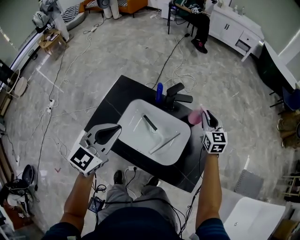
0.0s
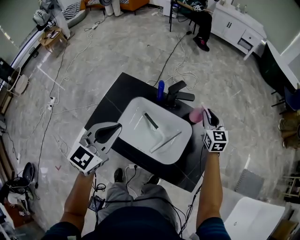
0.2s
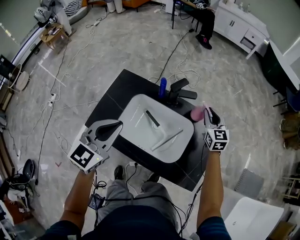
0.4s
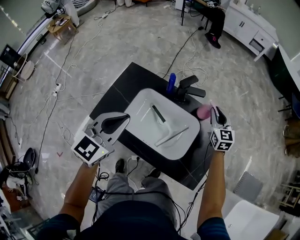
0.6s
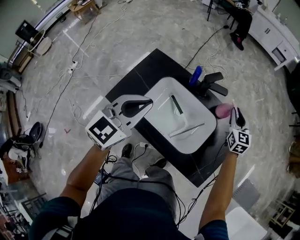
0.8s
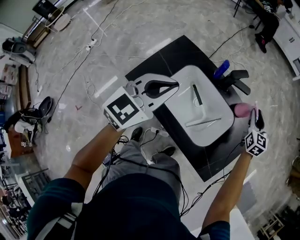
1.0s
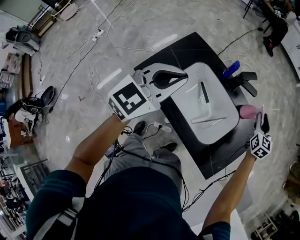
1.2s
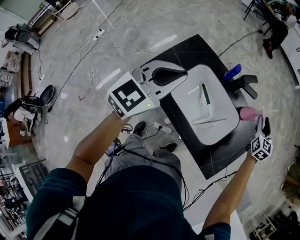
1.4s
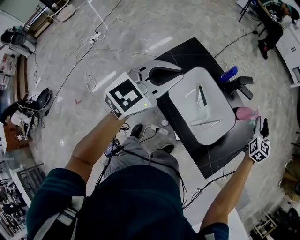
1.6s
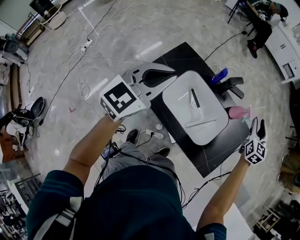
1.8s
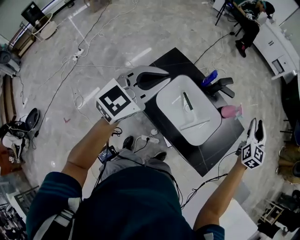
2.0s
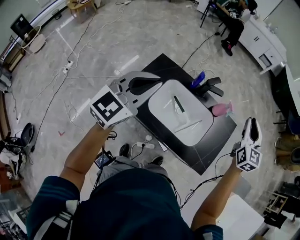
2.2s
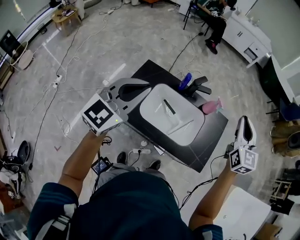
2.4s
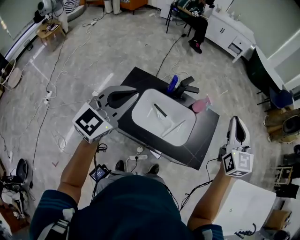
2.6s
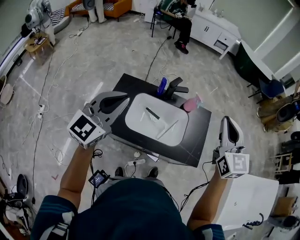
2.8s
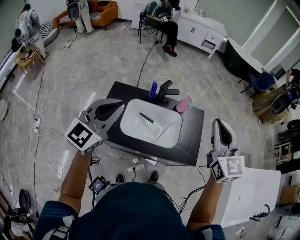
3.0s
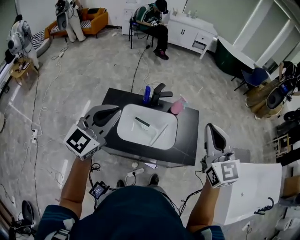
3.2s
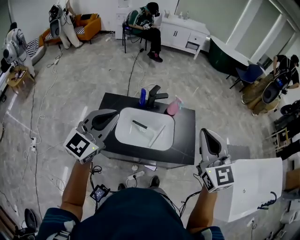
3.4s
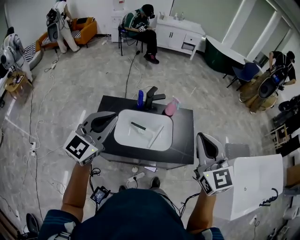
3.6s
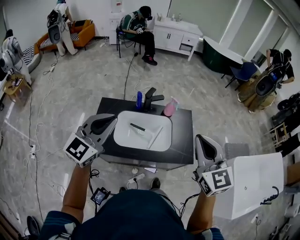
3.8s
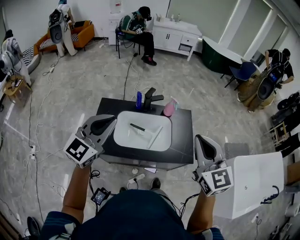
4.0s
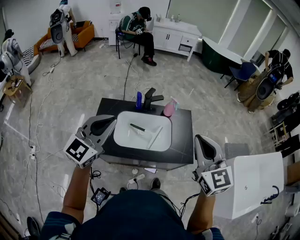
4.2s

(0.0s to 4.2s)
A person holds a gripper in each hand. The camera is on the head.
0.0s - 1.4s: The left gripper shifts roughly 10 cm to the left, while the right gripper opens its fingers.
1.4s - 2.8s: The right gripper heads upward and backward, covering roughly 40 cm, swivels some 20 degrees, and closes up. Meanwhile the left gripper moves upward, approximately 15 cm, and turns by approximately 20 degrees.
2.8s - 4.2s: The left gripper ends up roughly 5 cm from where it was; the right gripper moves backward, some 15 cm.

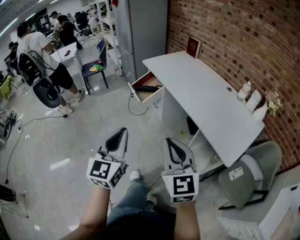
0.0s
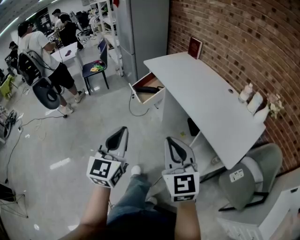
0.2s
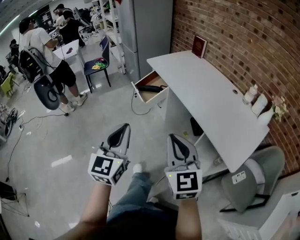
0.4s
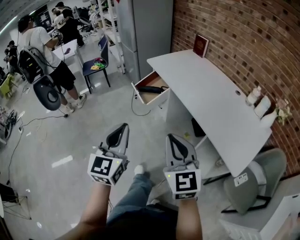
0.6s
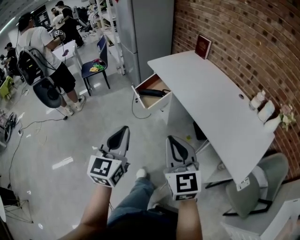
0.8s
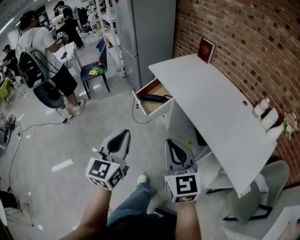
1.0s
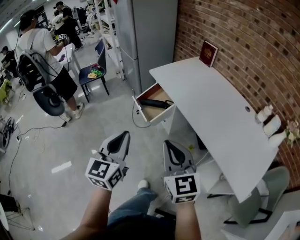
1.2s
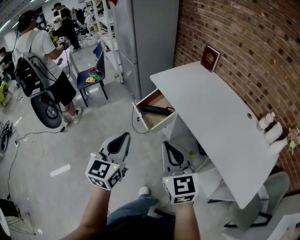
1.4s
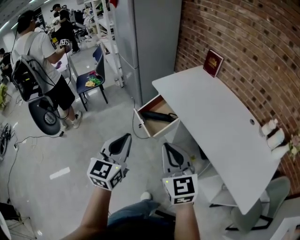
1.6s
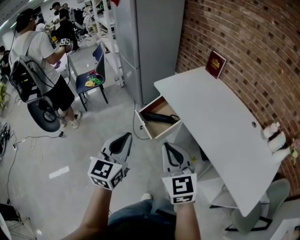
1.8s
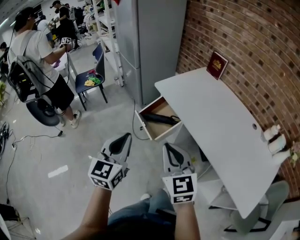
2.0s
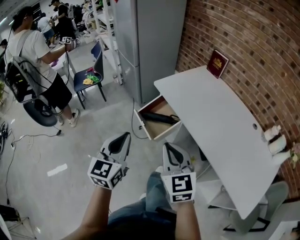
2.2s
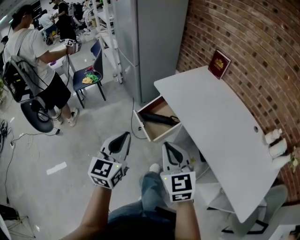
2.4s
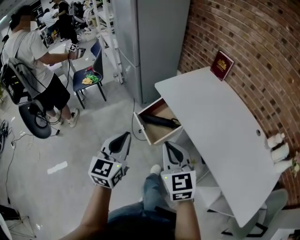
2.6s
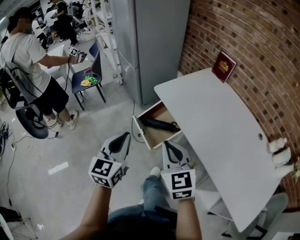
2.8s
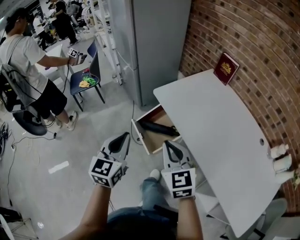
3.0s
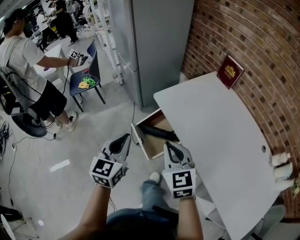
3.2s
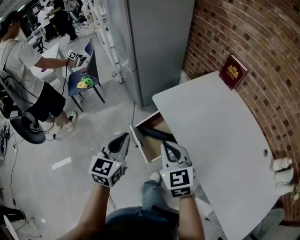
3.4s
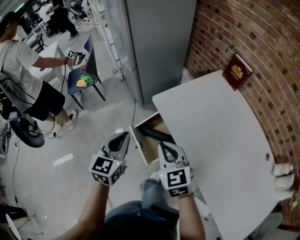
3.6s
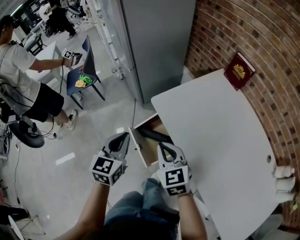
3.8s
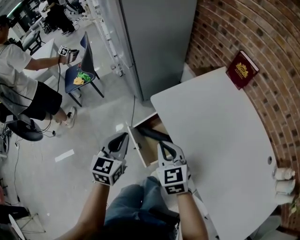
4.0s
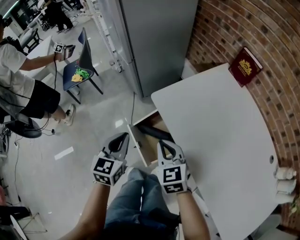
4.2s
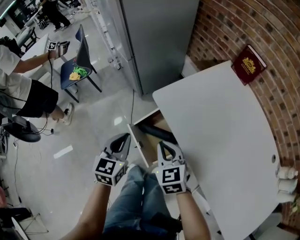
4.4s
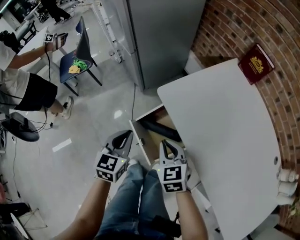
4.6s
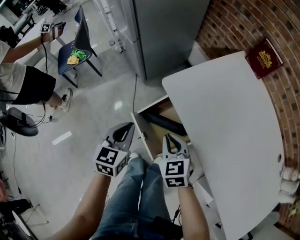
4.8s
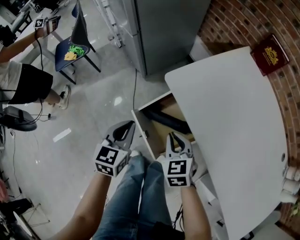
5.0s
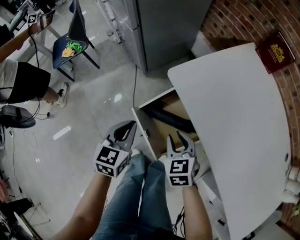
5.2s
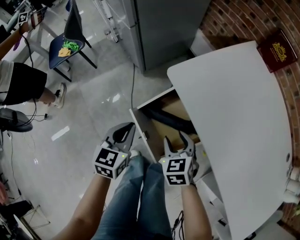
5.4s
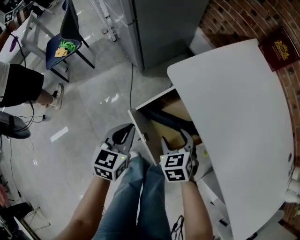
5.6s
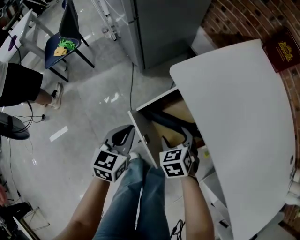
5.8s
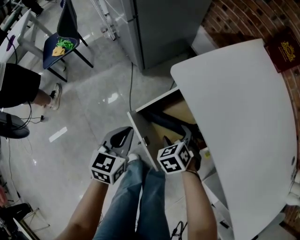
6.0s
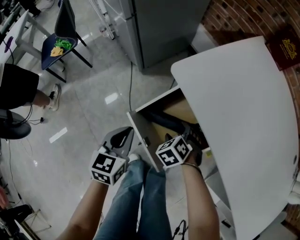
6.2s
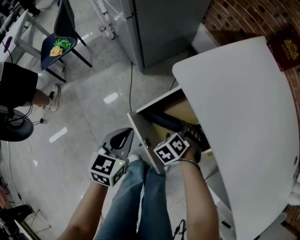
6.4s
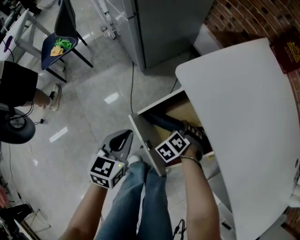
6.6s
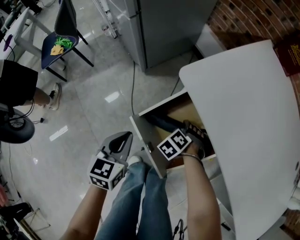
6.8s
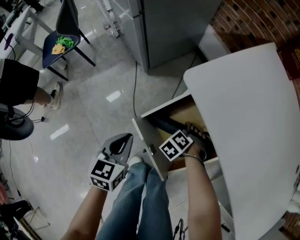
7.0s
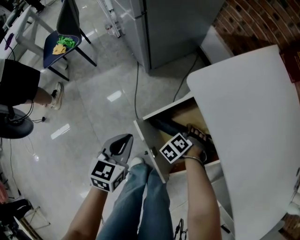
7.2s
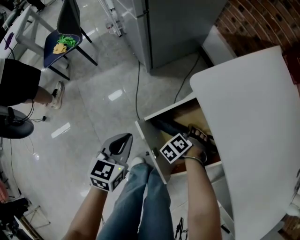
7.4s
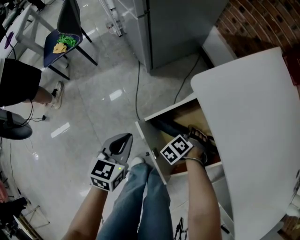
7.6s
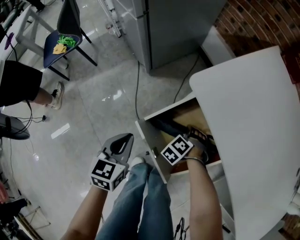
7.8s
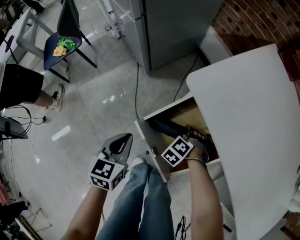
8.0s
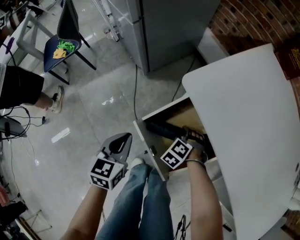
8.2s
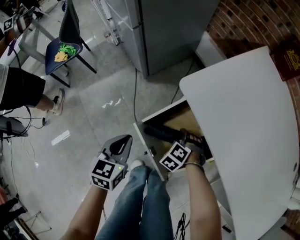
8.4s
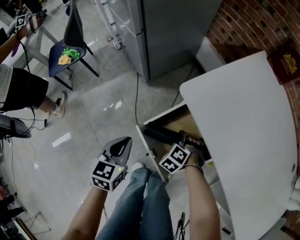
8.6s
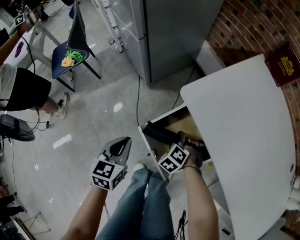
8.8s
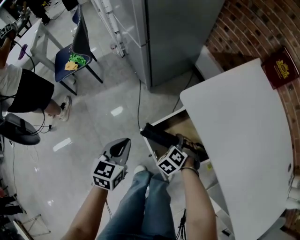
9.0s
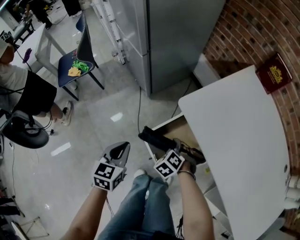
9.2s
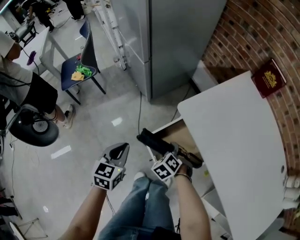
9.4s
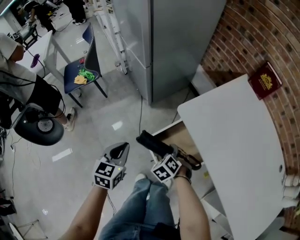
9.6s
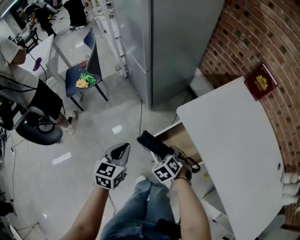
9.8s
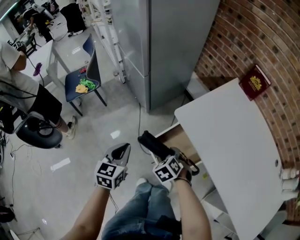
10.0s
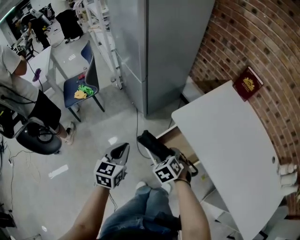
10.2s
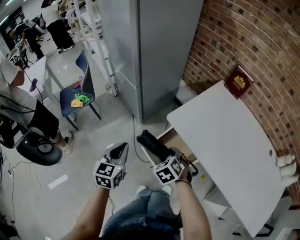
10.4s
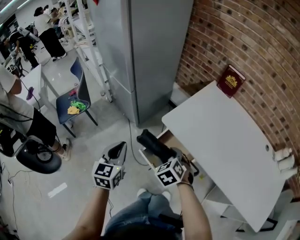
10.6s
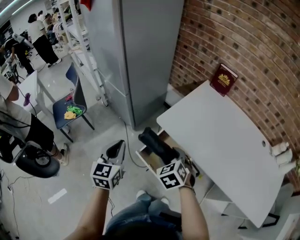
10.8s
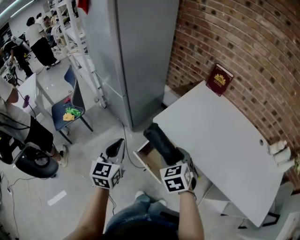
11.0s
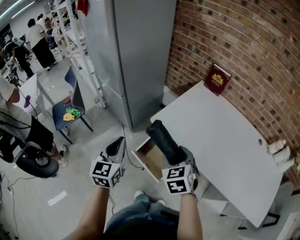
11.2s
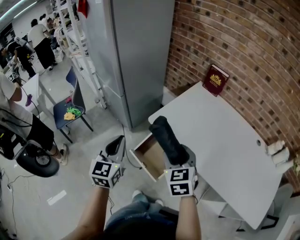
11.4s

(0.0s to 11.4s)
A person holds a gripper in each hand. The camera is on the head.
0.0s - 1.4s: Both grippers travel together forward, roughly 30 cm.
1.4s - 2.8s: Both grippers move forward, about 20 cm.
2.8s - 4.2s: Both grippers move forward and downward, approximately 25 cm.
4.2s - 5.6s: The grippers both shift downward by roughly 20 cm. The right gripper changes its angle by approximately 20 degrees, and opens up.
5.6s - 7.2s: The right gripper moves downward, about 20 cm, and rotates some 50 degrees, while the left gripper heads downward, covering approximately 5 cm.
7.2s - 8.6s: The right gripper is displaced upward by approximately 5 cm.
8.6s - 10.0s: Both grippers move upward, about 20 cm. The right gripper changes its angle by about 20 degrees.
10.0s - 11.4s: The right gripper goes about 25 cm upward, and angles its fingers upward, by some 30 degrees, while the left gripper is displaced upward and to the right by about 20 cm, and changes its angle by some 20 degrees.

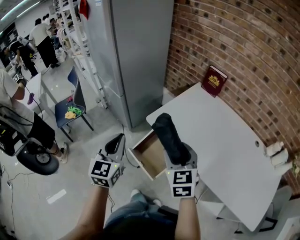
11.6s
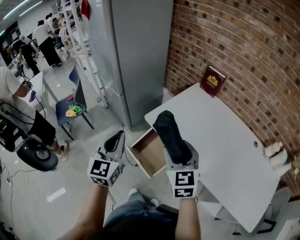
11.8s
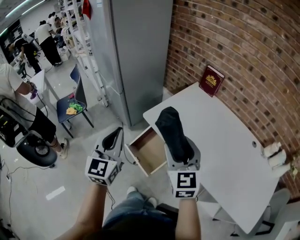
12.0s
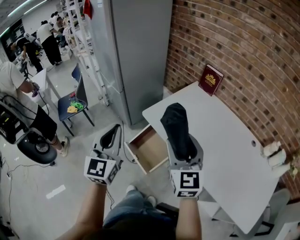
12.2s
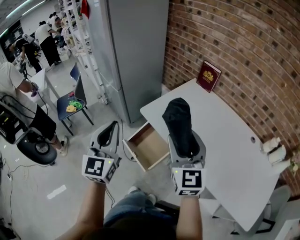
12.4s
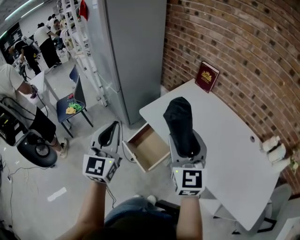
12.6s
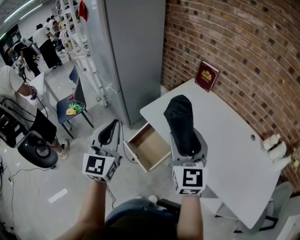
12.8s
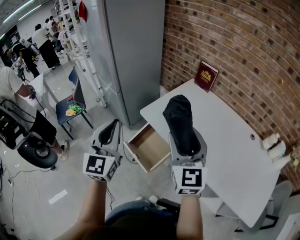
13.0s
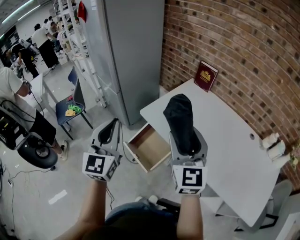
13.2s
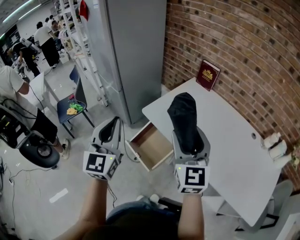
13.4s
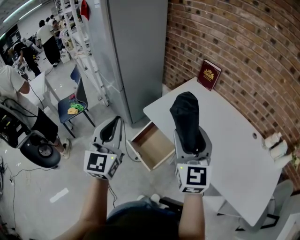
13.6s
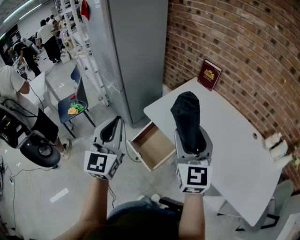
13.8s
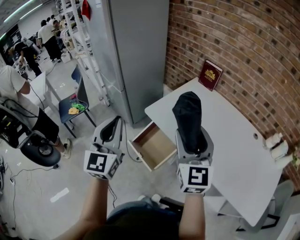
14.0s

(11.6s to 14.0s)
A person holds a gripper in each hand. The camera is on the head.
11.6s - 12.8s: The left gripper goes approximately 10 cm upward, backward and to the right; the right gripper moves upward and to the right, roughly 10 cm, and turns by some 20 degrees.
12.8s - 14.0s: The grippers stay close to where they were, moving slightly.

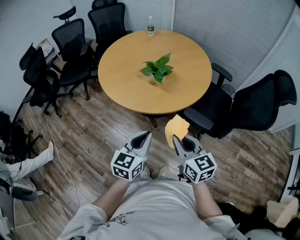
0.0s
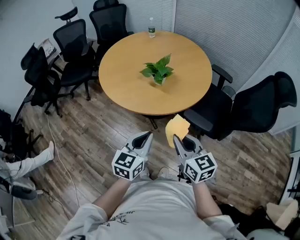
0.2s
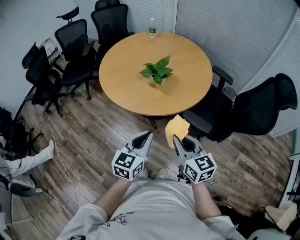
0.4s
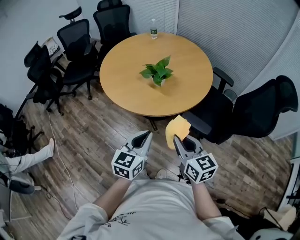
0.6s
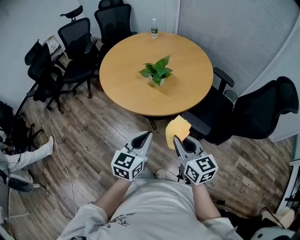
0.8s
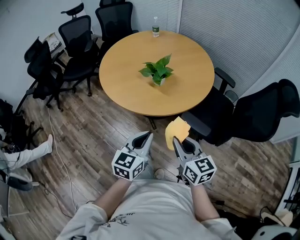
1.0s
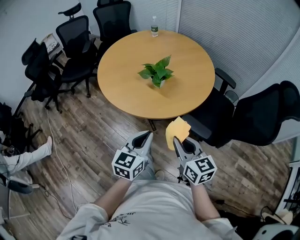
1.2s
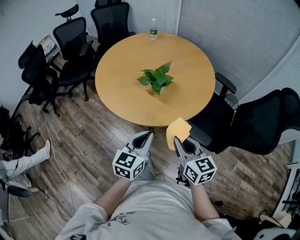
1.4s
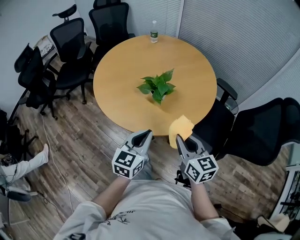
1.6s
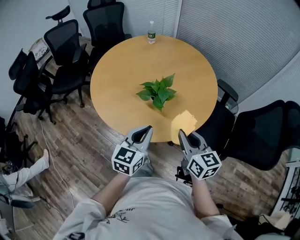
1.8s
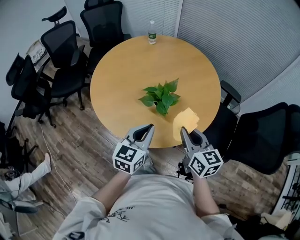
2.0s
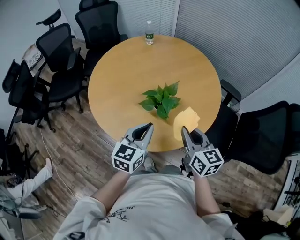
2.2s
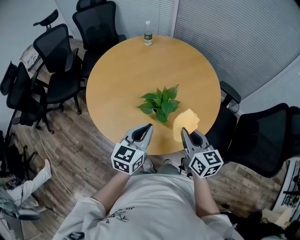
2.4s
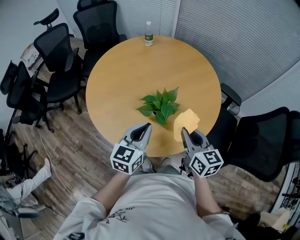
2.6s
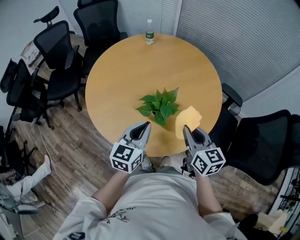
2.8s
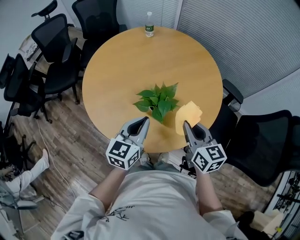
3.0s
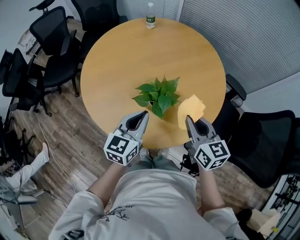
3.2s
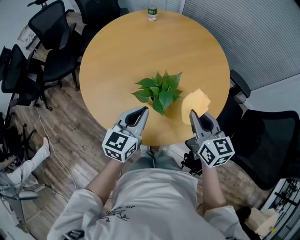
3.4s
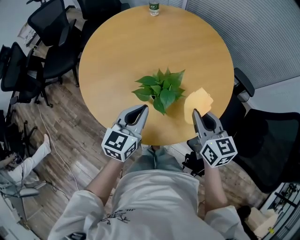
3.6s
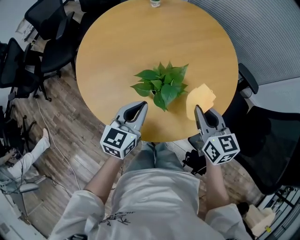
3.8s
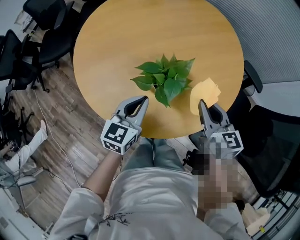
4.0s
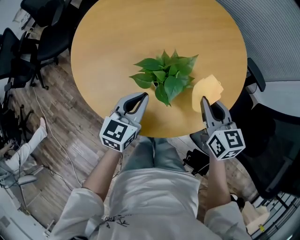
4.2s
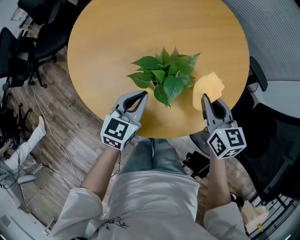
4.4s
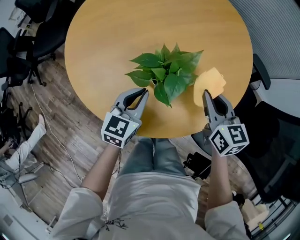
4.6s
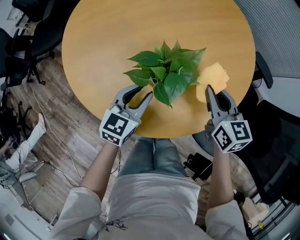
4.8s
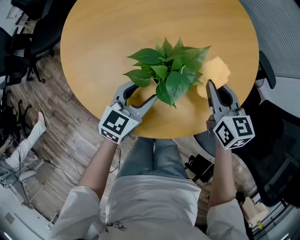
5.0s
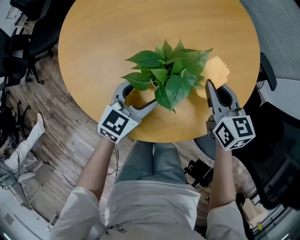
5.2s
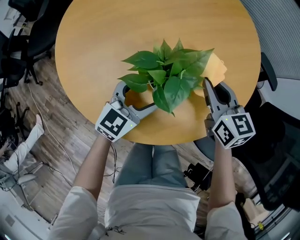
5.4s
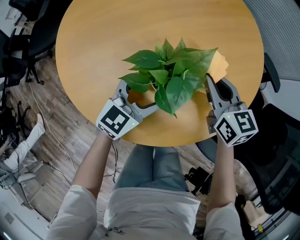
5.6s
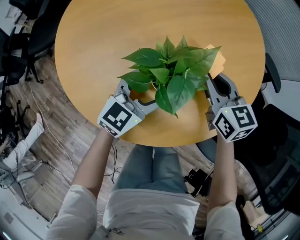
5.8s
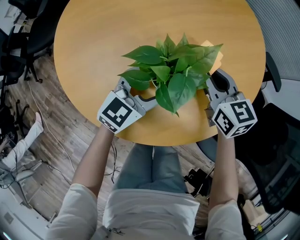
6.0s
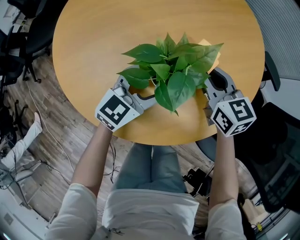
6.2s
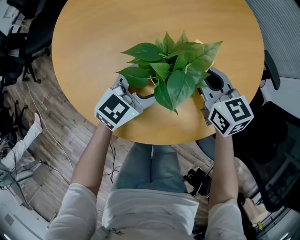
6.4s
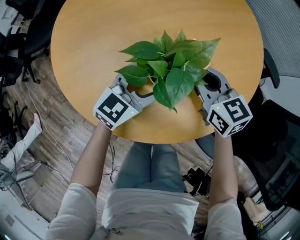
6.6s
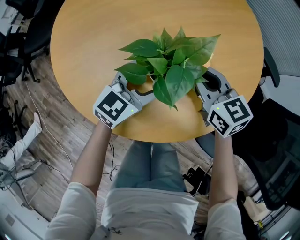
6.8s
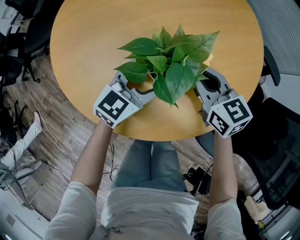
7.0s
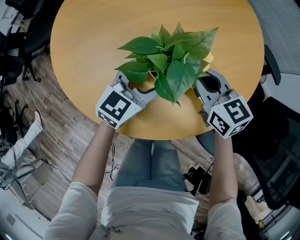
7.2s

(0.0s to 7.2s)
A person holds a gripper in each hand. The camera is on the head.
0.0s - 1.4s: The two grippers go roughly 10 cm forward.
1.4s - 2.8s: The two grippers go some 25 cm forward.
2.8s - 4.4s: The right gripper goes about 15 cm downward and forward; the left gripper goes roughly 15 cm downward.
4.4s - 5.8s: The right gripper heads forward and downward, covering about 10 cm; the left gripper changes place by some 10 cm, rotates roughly 20 degrees, and opens its fingers.
5.8s - 7.2s: The grippers move only a little.
